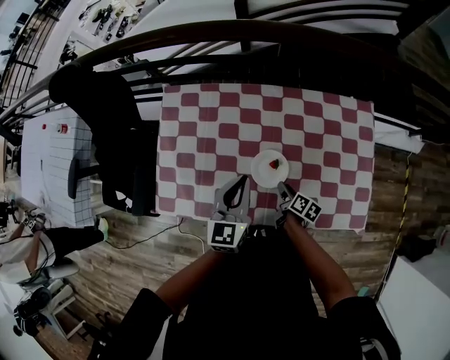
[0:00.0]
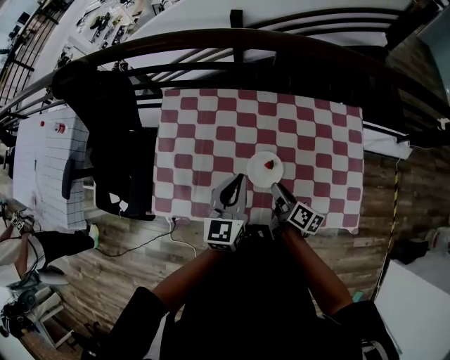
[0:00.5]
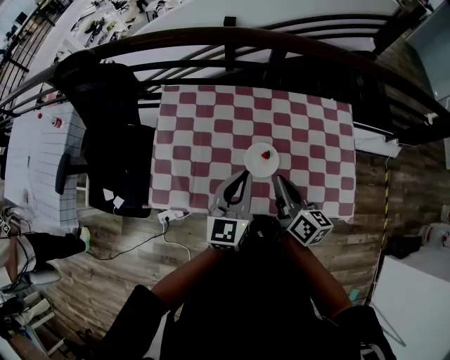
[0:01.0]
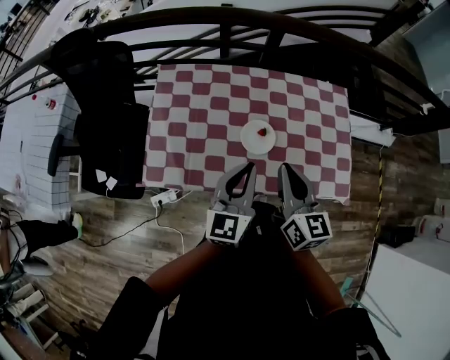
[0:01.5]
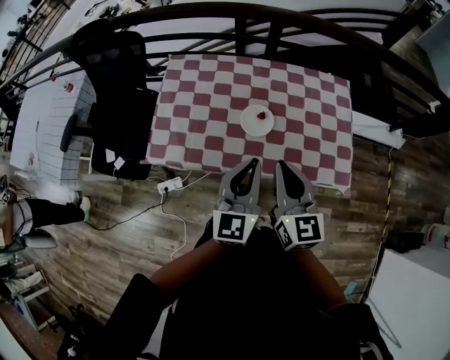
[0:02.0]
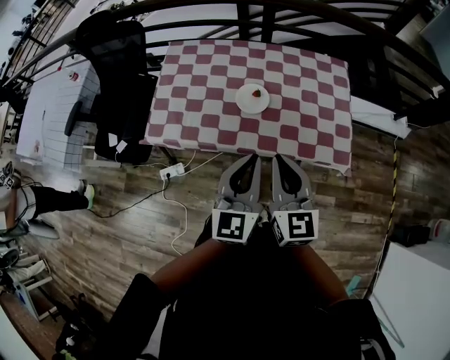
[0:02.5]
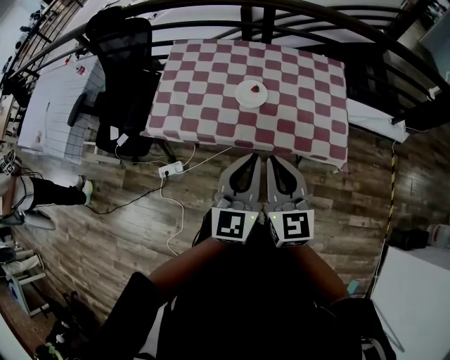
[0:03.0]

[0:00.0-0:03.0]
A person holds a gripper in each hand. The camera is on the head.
0.0 to 1.5 s: The left gripper moves backward and upward, approximately 15 cm. The right gripper travels upward by roughly 35 cm, tilts its fingers about 30 degrees upward, and closes up.
1.5 to 3.0 s: The right gripper heads backward, covering about 25 cm; the left gripper moves backward and to the right, about 25 cm.

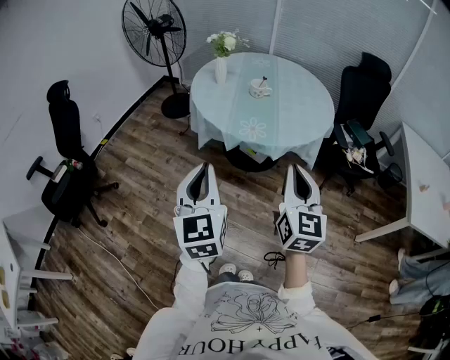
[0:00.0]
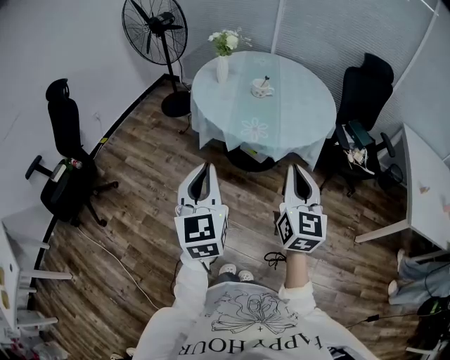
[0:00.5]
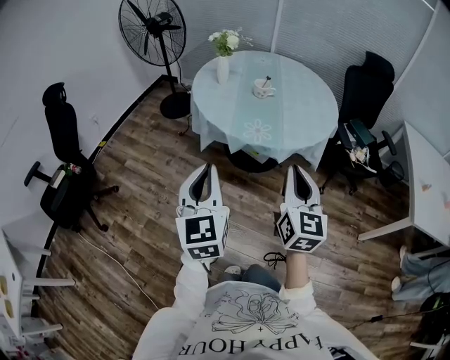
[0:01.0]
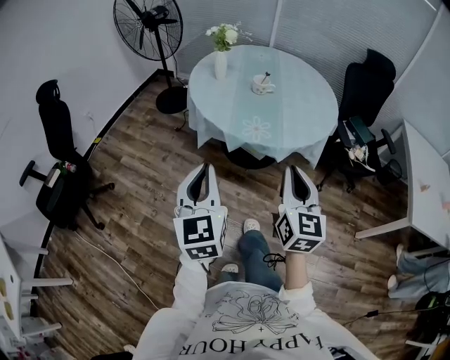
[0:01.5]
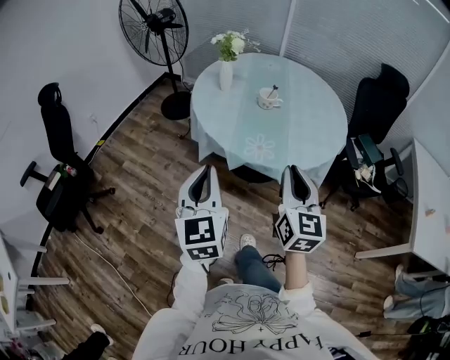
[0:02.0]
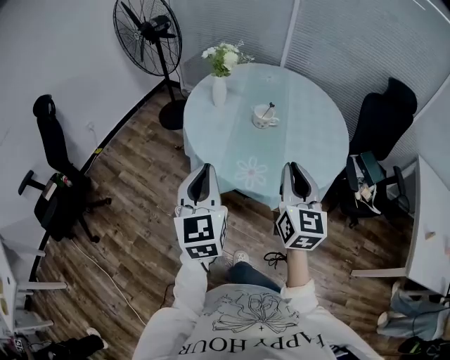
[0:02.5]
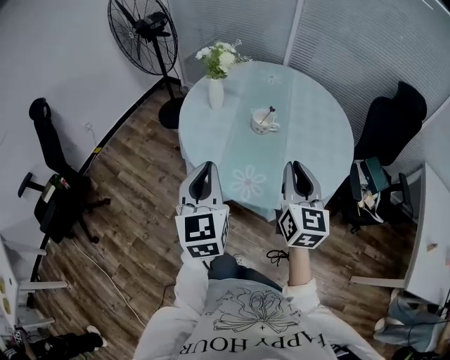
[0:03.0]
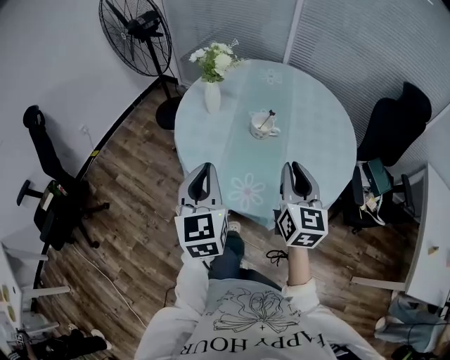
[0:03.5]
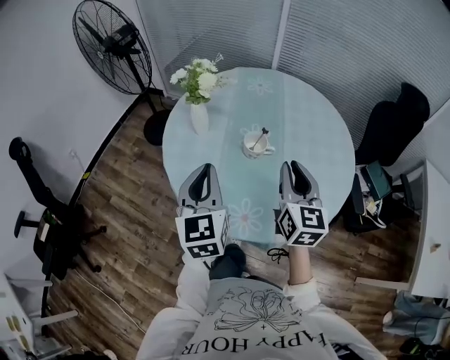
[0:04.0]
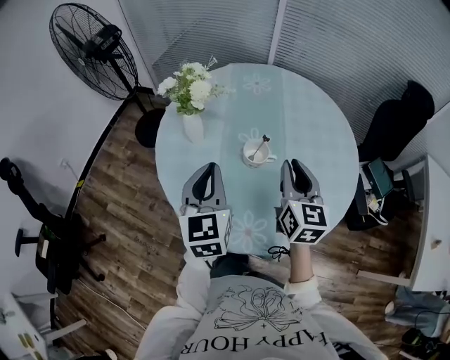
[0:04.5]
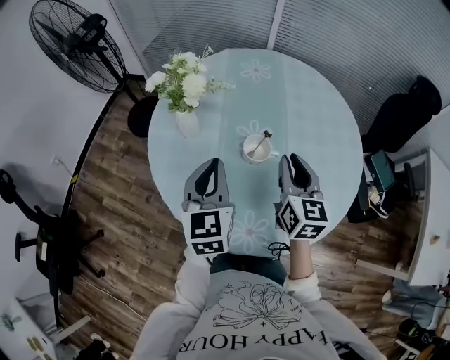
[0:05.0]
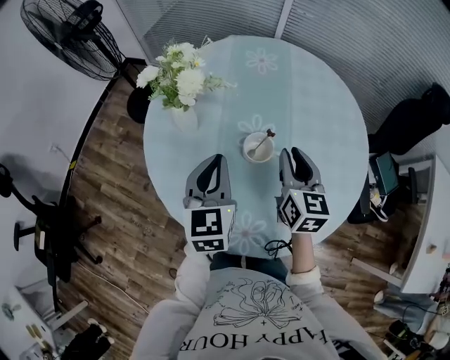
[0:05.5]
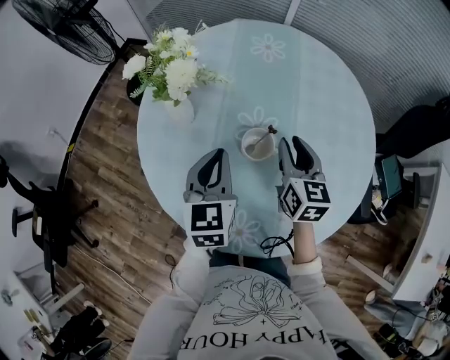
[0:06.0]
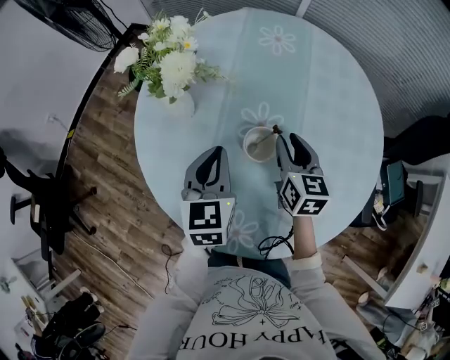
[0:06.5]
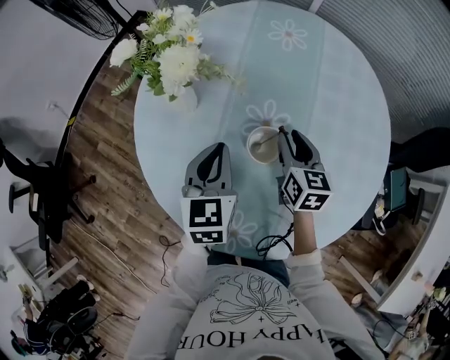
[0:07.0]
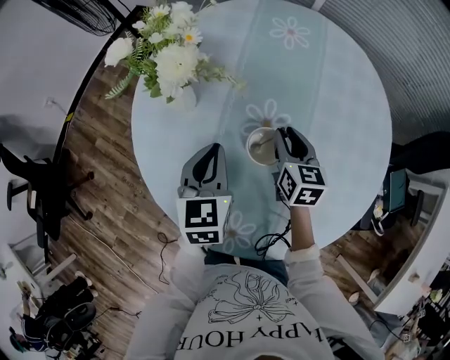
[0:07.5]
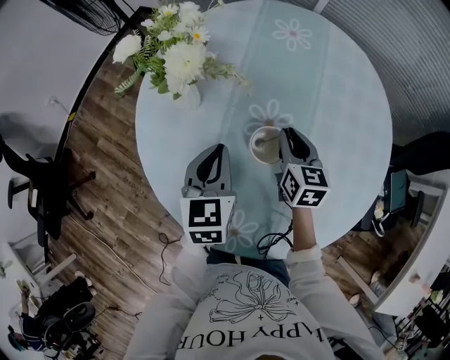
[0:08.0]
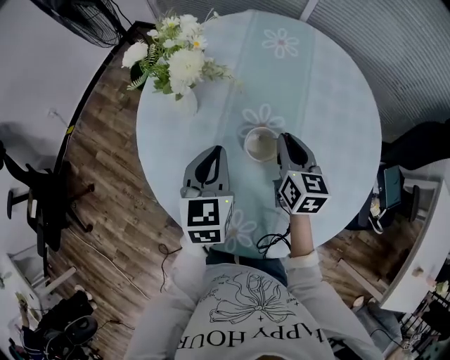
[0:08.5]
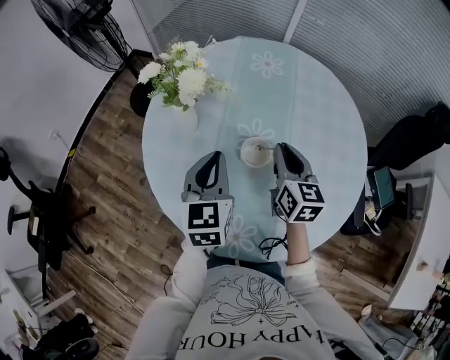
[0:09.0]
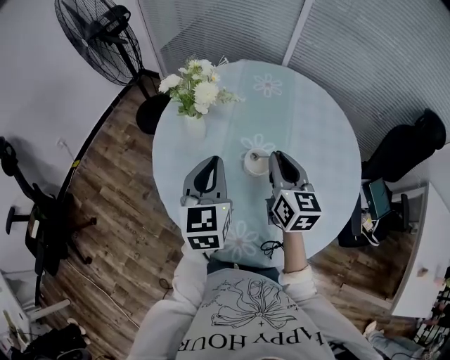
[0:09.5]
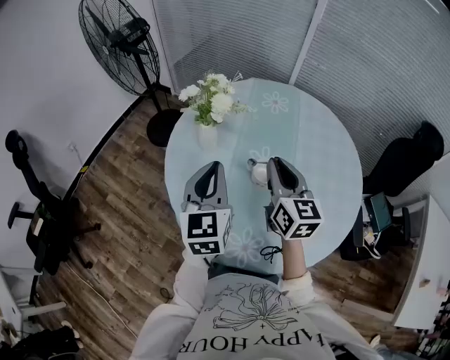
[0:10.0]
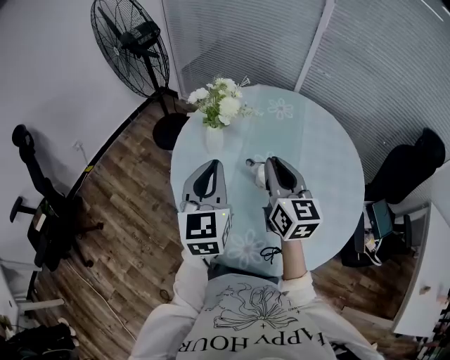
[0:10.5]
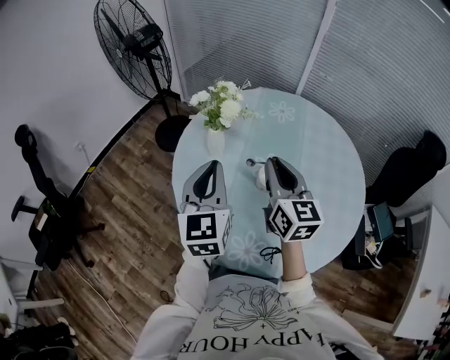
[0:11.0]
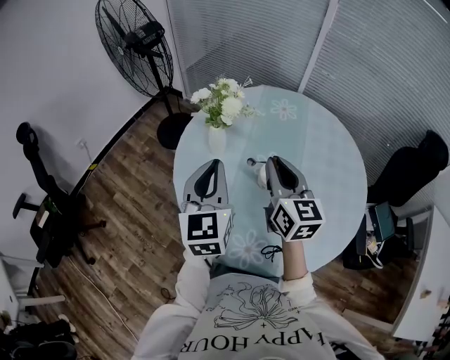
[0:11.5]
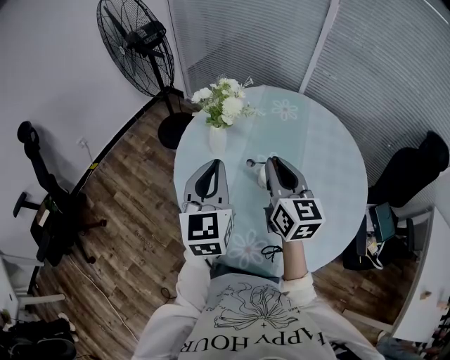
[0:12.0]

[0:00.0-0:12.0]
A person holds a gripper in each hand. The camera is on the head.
0.0 to 2.0 s: The grippers both shift forward by some 15 cm.
2.0 to 4.0 s: The grippers both shift forward by some 35 cm.
4.0 to 6.0 s: Both grippers travel together forward and downward, some 25 cm.
6.0 to 8.0 s: The left gripper is displaced downward by about 5 cm; the right gripper is displaced downward and forward by about 10 cm.
8.0 to 10.0 s: The grippers both shift upward and backward by approximately 20 cm. The left gripper changes its angle by roughly 20 degrees, while the right gripper turns by some 20 degrees.
10.0 to 12.0 s: There are only small adjustments of the grippers.

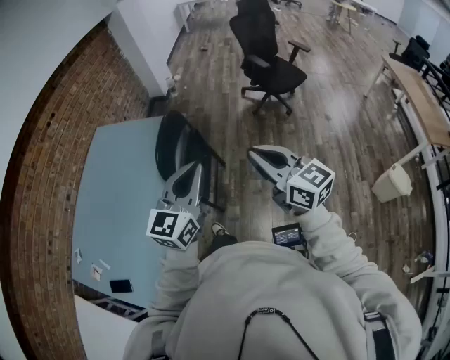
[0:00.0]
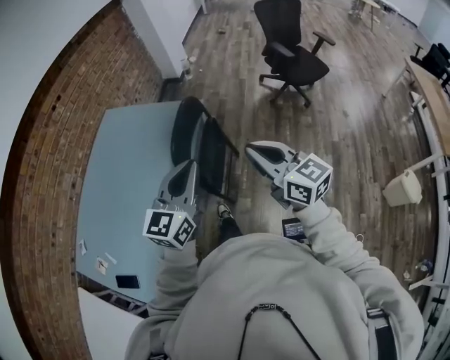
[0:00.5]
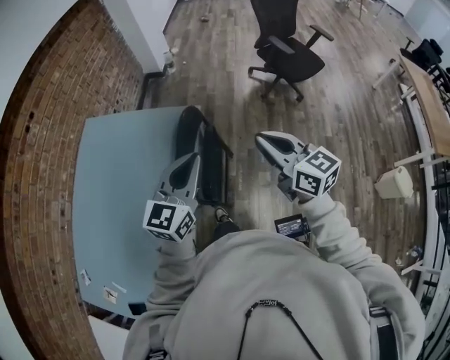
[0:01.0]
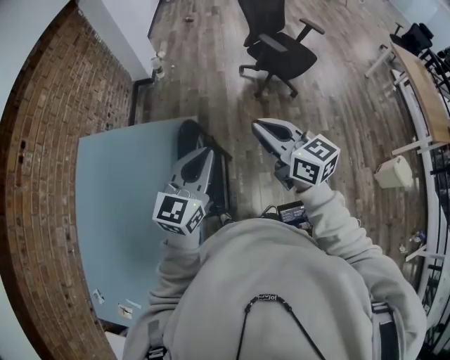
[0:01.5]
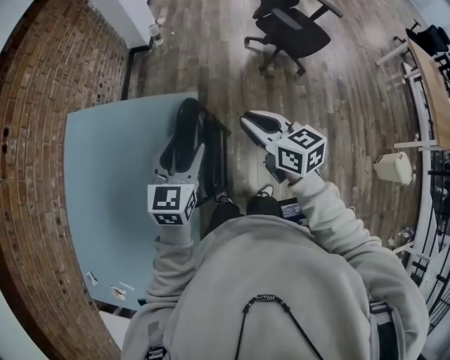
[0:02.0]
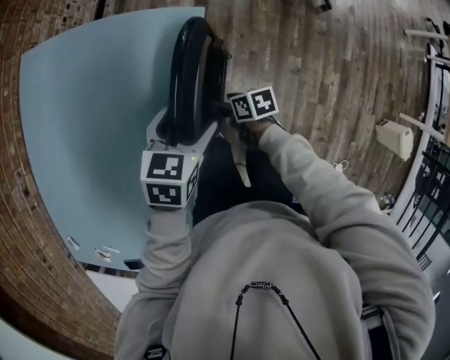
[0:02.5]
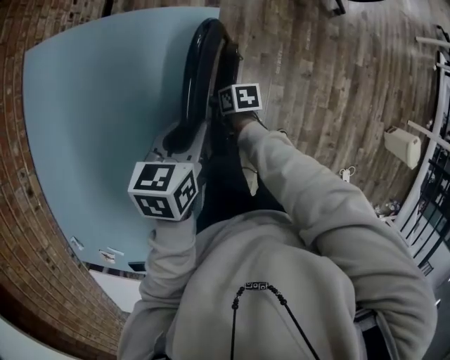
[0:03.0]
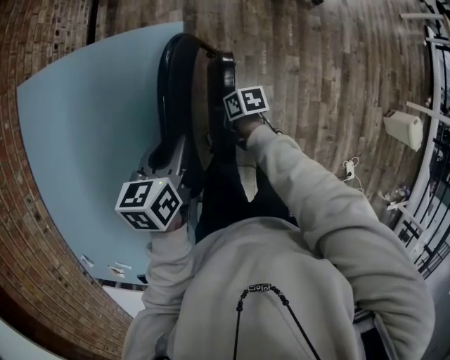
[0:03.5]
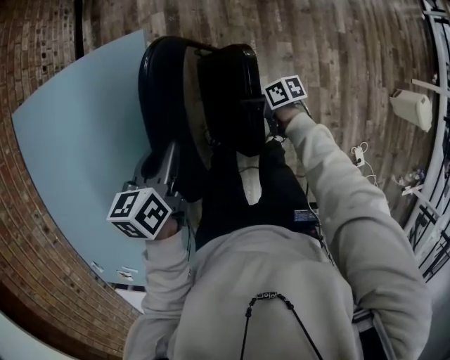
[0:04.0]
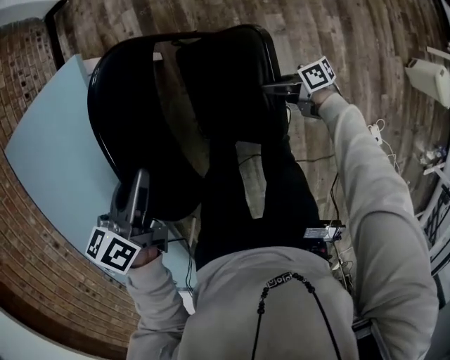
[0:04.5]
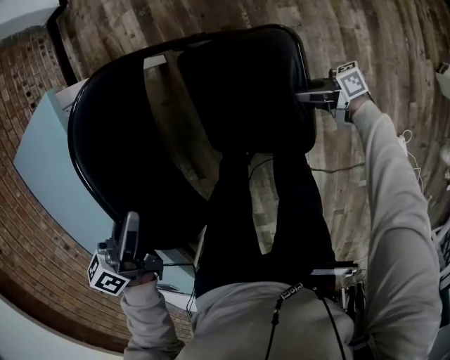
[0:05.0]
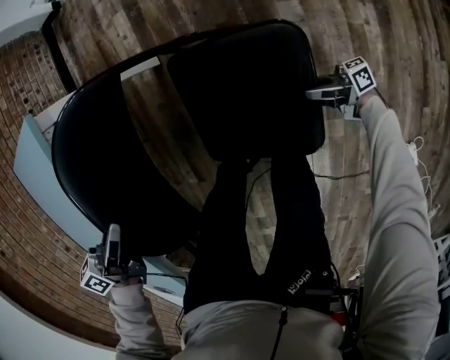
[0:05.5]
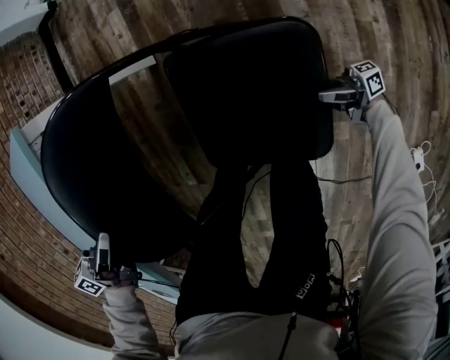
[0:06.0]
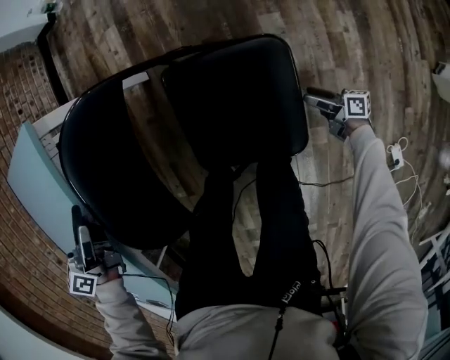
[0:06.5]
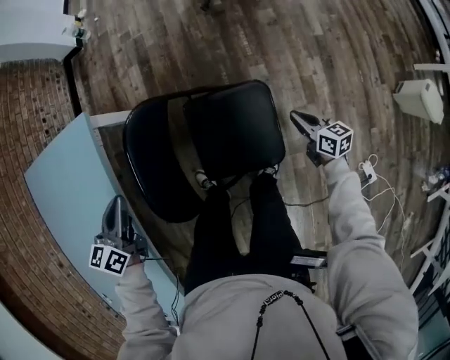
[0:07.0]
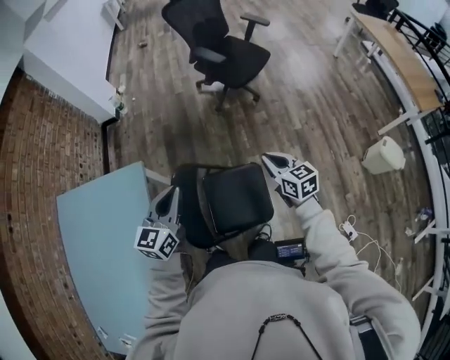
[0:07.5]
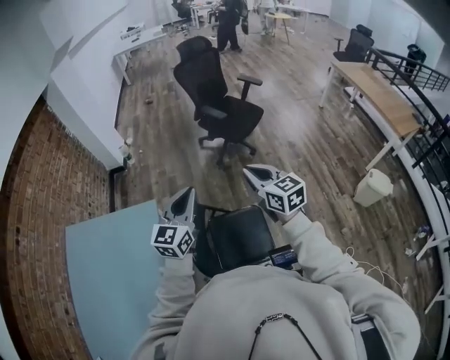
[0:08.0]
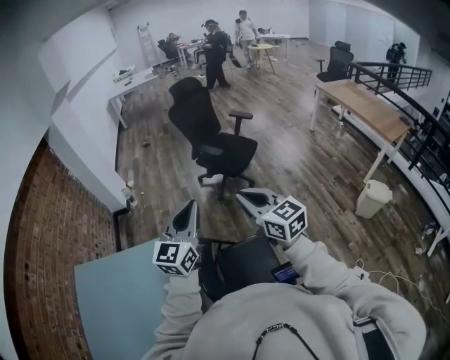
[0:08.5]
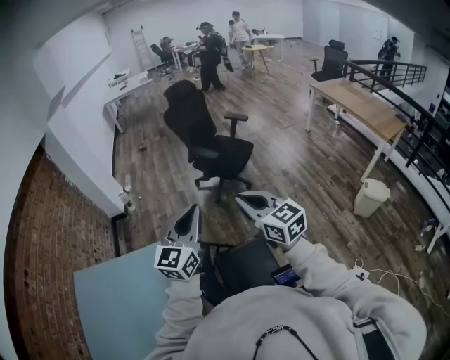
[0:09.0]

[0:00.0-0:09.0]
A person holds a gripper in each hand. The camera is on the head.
0.0 to 2.0 s: Both grippers are carried forward, some 40 cm. The right gripper rotates some 20 degrees. The left gripper changes its angle by approximately 20 degrees, and opens.
2.0 to 4.5 s: The left gripper moves downward, about 30 cm, rotates some 50 degrees, and closes up. Meanwhile the right gripper goes approximately 60 cm downward, rolls clockwise, seen from behind, by about 50 degrees, and opens, then closes again.
4.5 to 7.0 s: The left gripper travels downward and back again, roughly 15 cm each way, rotates approximately 20 degrees, and opens and closes again. Meanwhile the right gripper heads to the right, covering approximately 25 cm, travels downward and back again, some 20 cm each way, rotates roughly 50 degrees, and closes.
7.0 to 9.0 s: The left gripper travels upward by roughly 50 cm, and tips its fingers upward by some 40 degrees. The right gripper goes some 70 cm upward, and rotates some 50 degrees.

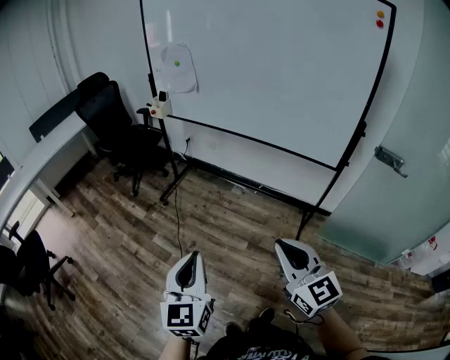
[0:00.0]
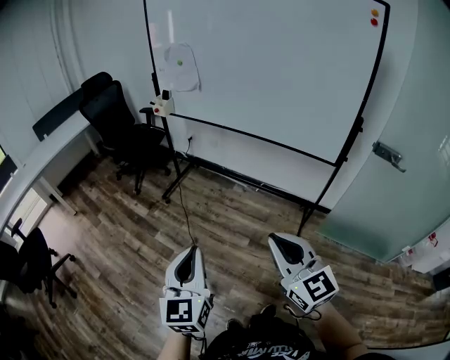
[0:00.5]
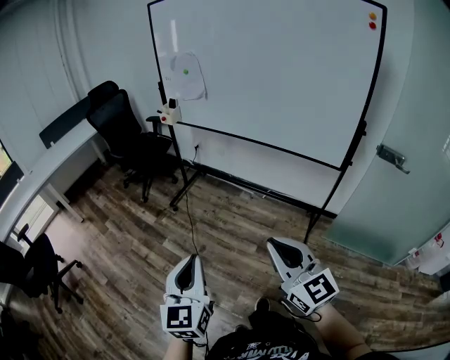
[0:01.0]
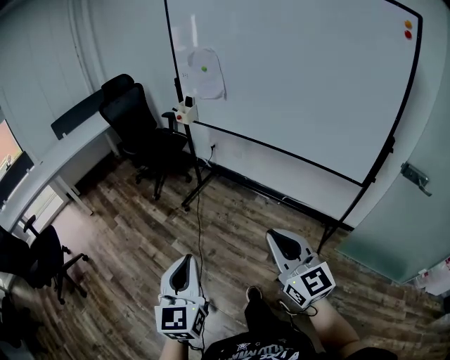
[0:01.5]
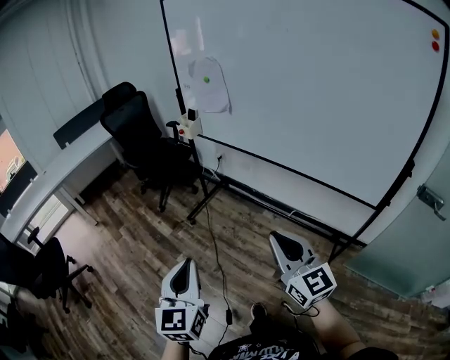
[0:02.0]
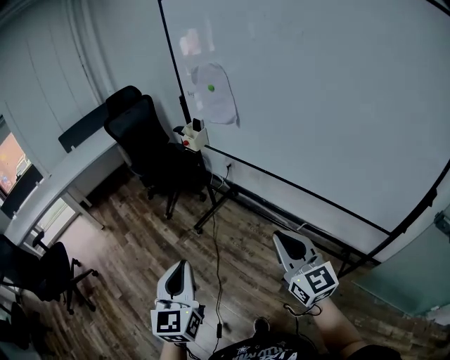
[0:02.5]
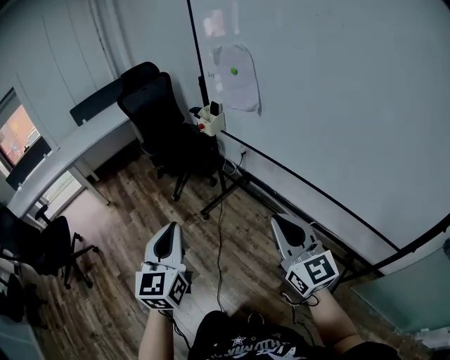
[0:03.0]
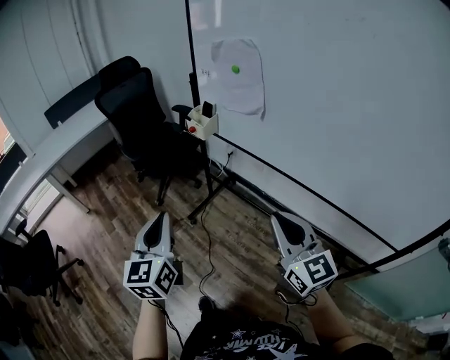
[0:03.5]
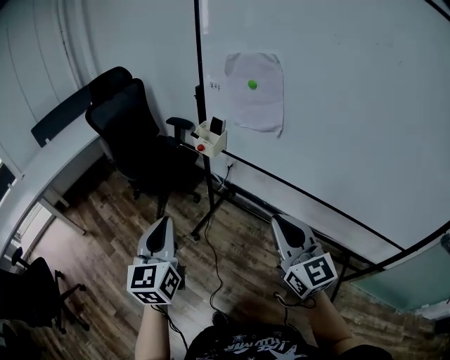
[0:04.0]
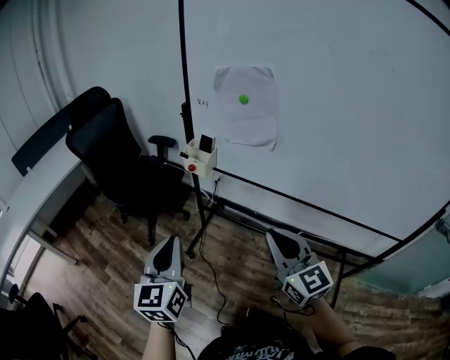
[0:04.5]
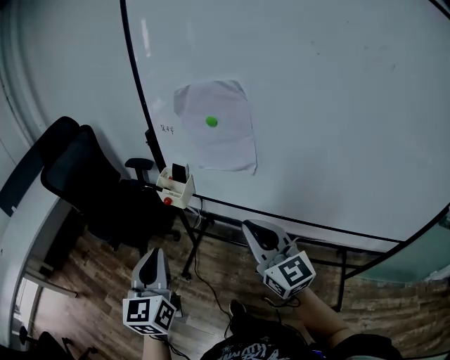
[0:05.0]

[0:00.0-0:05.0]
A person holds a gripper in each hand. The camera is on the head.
0.0 to 2.5 s: The grippers both shift forward by some 30 cm.
2.5 to 5.0 s: The two grippers go approximately 40 cm forward.
